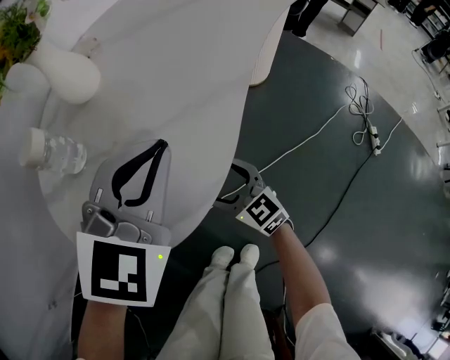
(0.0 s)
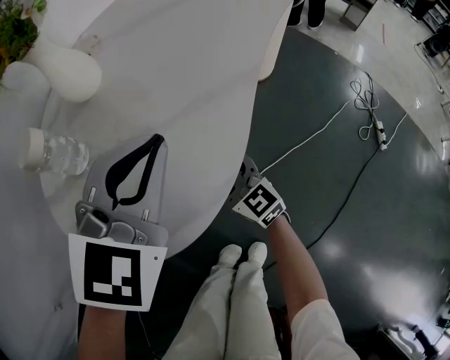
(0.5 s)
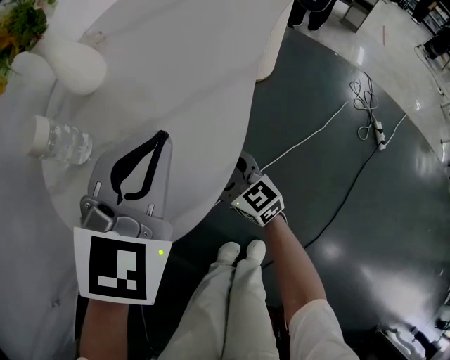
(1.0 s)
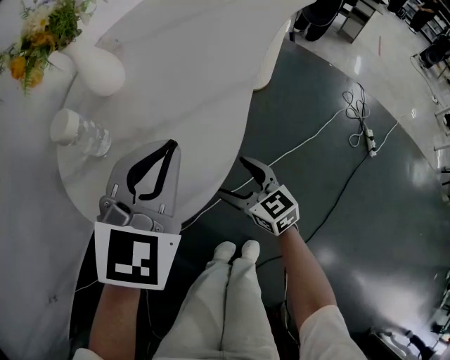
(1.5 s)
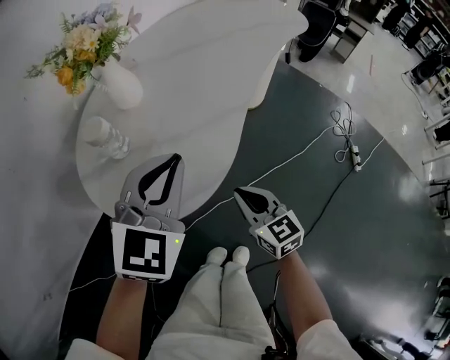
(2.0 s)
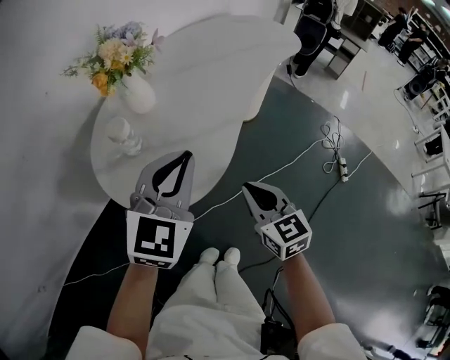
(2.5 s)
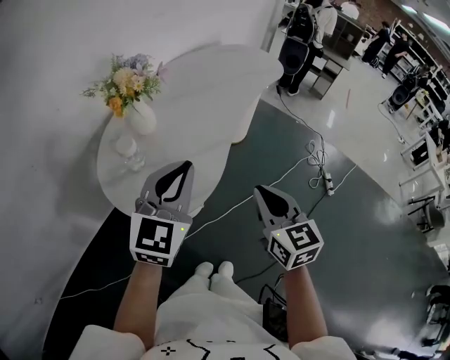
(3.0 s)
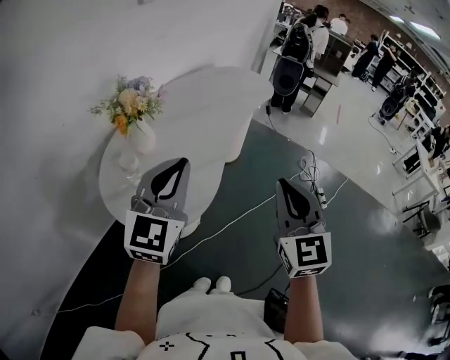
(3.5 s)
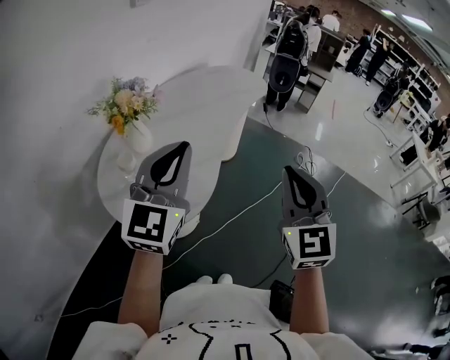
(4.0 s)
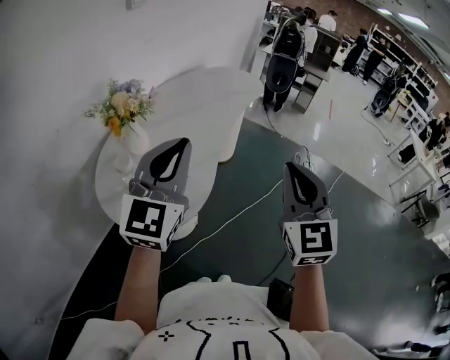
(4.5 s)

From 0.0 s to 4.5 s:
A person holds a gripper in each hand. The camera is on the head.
From 0.0 s to 2.0 s: Both grippers travel together upward and backward, approximately 15 cm. The right gripper closes.
From 2.0 s to 4.5 s: The left gripper goes roughly 25 cm upward, and turns by some 30 degrees. Meanwhile the right gripper goes roughly 40 cm upward, and turns by about 50 degrees.

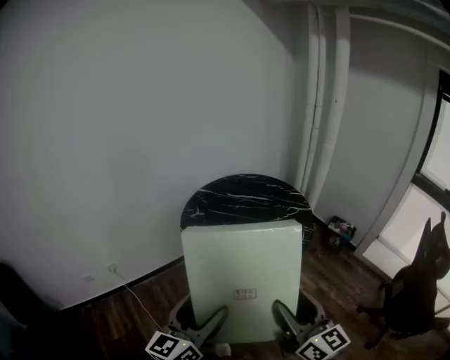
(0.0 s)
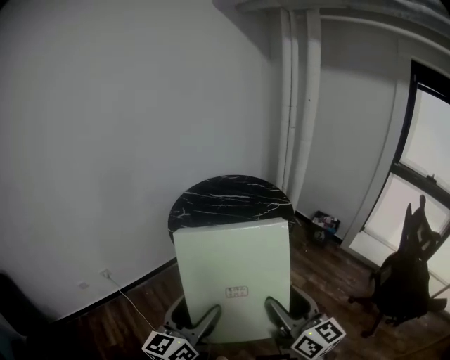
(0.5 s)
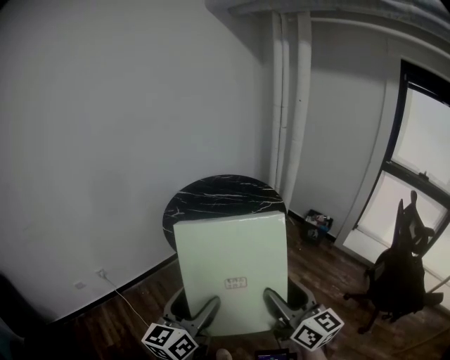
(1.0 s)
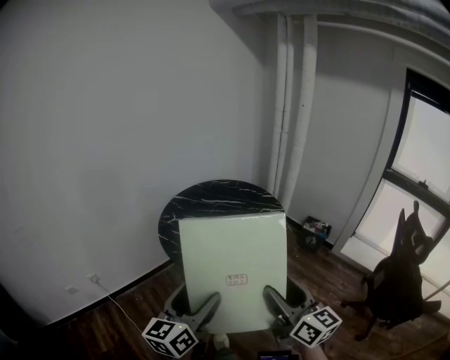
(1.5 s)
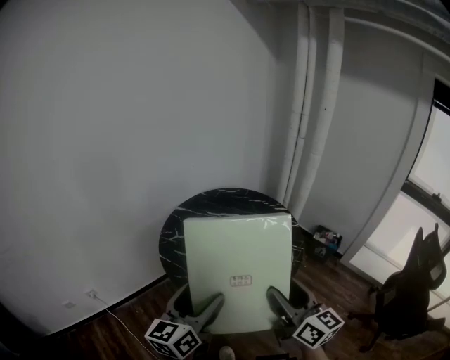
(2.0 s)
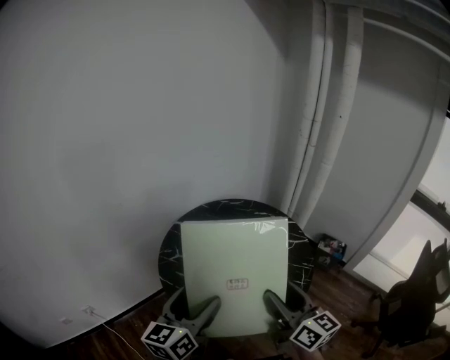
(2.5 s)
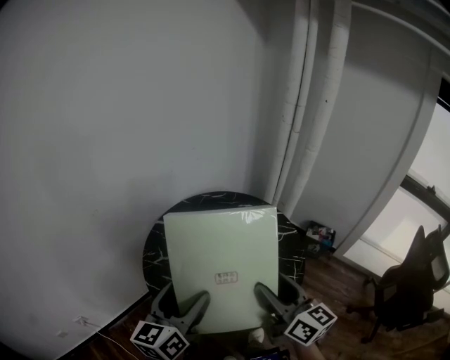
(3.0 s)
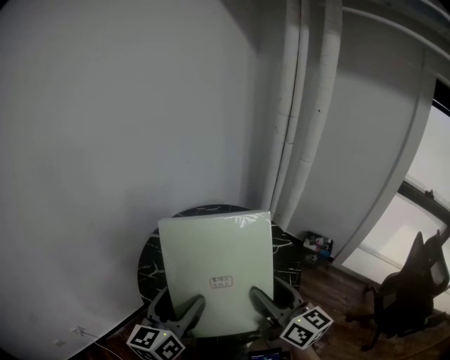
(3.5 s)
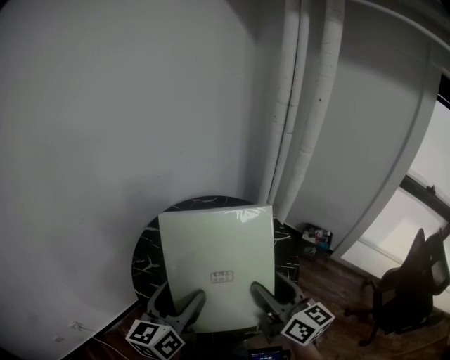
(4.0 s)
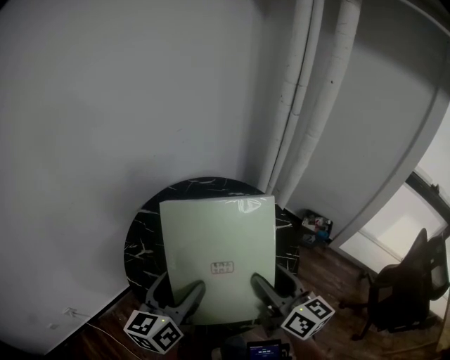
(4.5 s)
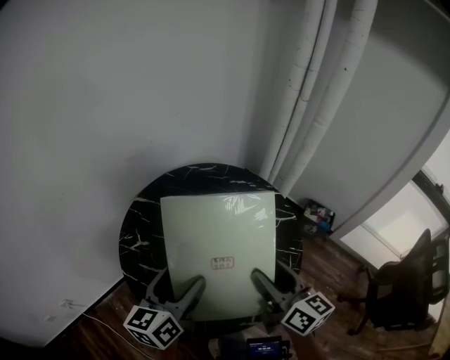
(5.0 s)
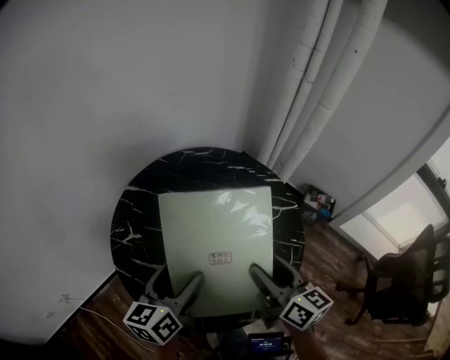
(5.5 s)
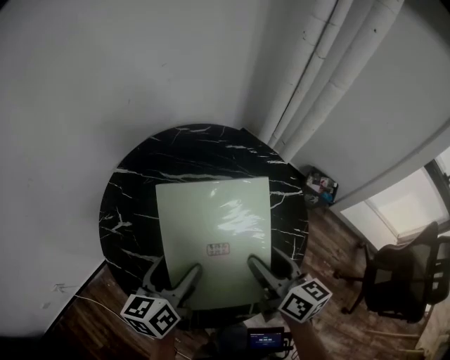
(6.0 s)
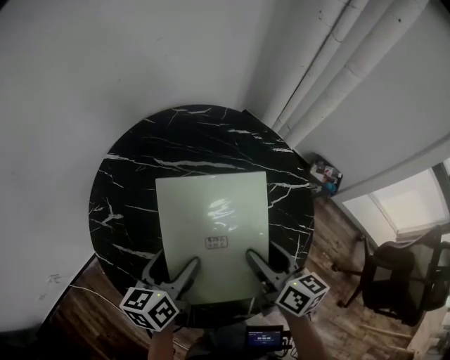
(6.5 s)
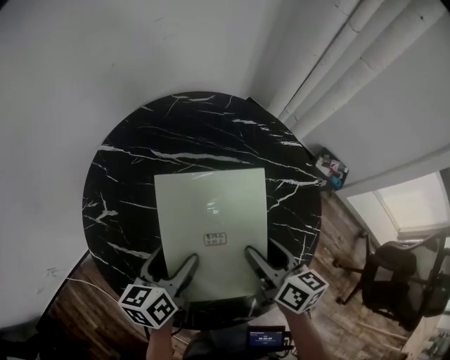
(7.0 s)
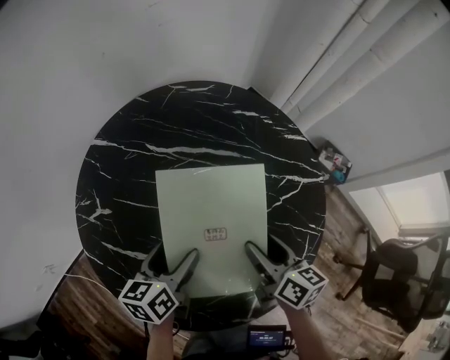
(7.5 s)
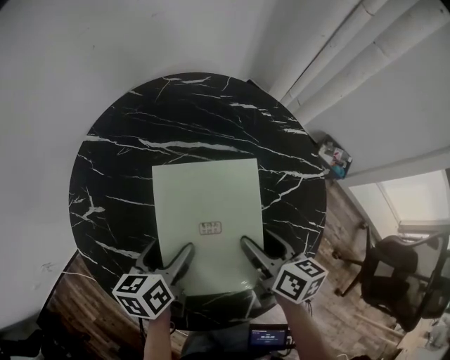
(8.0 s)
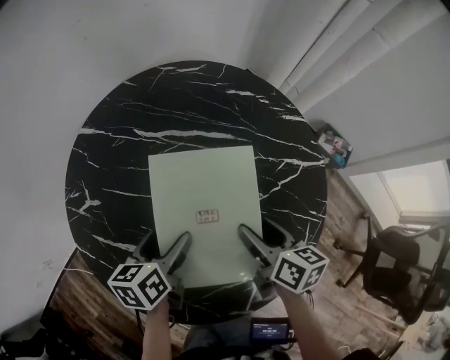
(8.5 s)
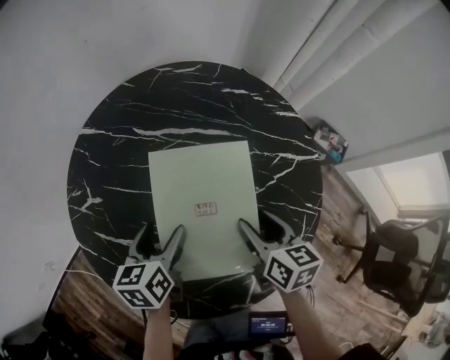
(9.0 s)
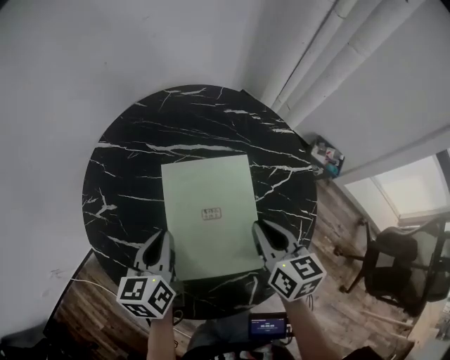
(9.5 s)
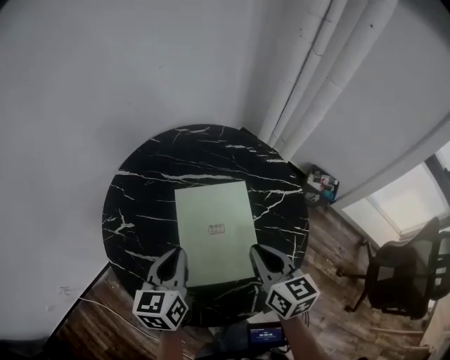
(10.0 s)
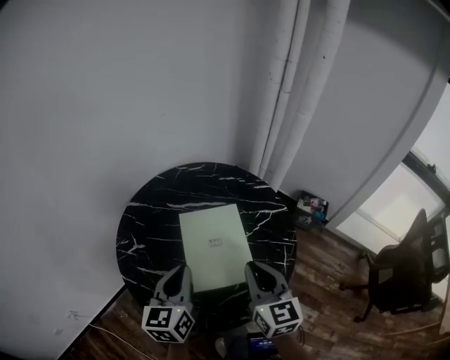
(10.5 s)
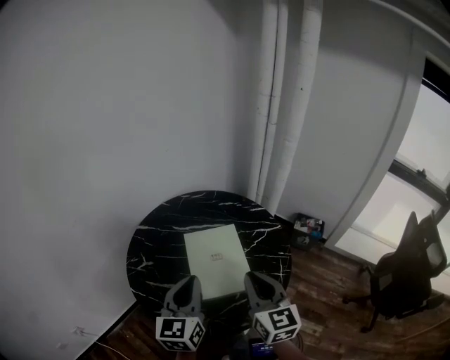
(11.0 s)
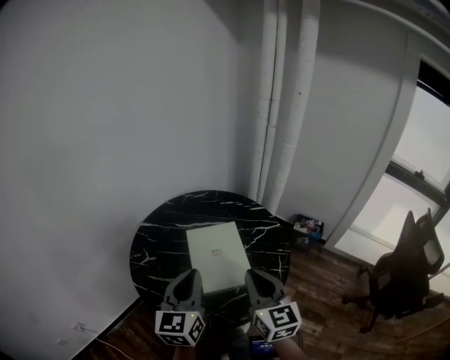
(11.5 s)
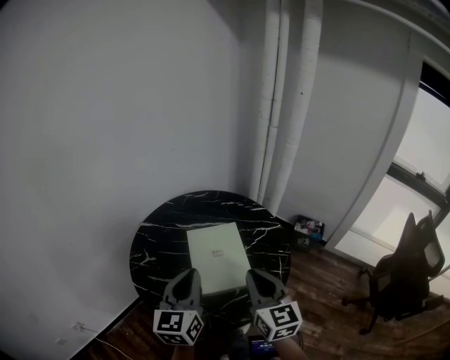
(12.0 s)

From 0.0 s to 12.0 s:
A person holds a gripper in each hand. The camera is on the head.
From 0.0 s to 2.0 s: Both grippers move forward, approximately 20 cm.
From 2.0 s to 4.0 s: Both grippers travel together forward, approximately 20 cm.
From 4.0 s to 6.0 s: Both grippers travel together downward and forward, about 20 cm. The right gripper swivels about 20 degrees. Meanwhile the left gripper rotates roughly 20 degrees.
From 6.0 s to 8.0 s: The left gripper moves downward, approximately 15 cm. The right gripper heads downward and forward, covering about 15 cm.
From 8.0 s to 10.0 s: Both grippers move upward, roughly 15 cm. The left gripper changes its angle by some 30 degrees, and closes, while the right gripper changes its angle by about 20 degrees, and closes its fingers.
From 10.0 s to 12.0 s: The two grippers go approximately 20 cm upward and backward. The left gripper rotates about 20 degrees, while the right gripper rotates some 20 degrees.

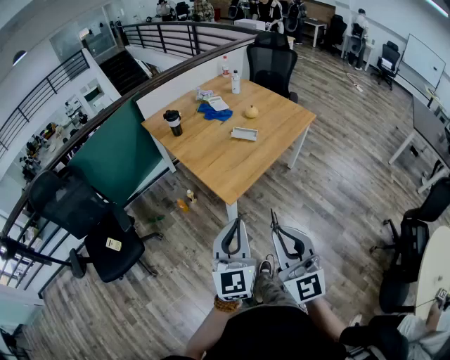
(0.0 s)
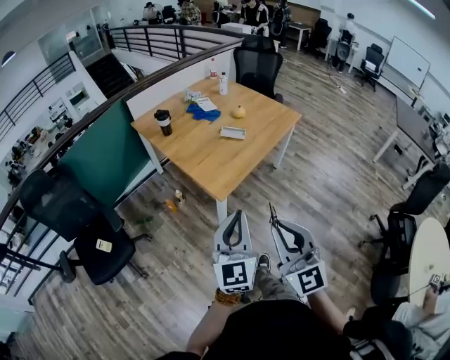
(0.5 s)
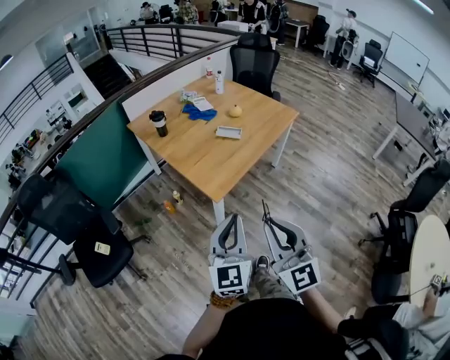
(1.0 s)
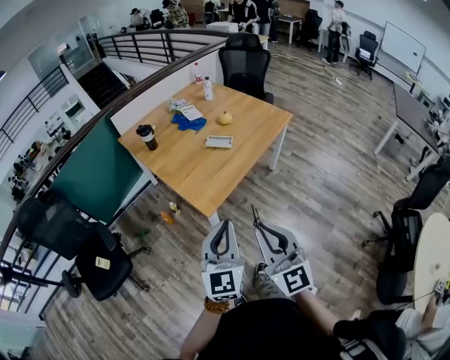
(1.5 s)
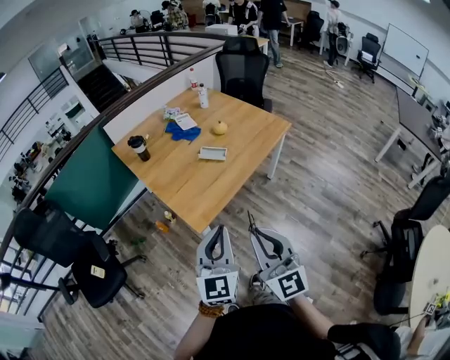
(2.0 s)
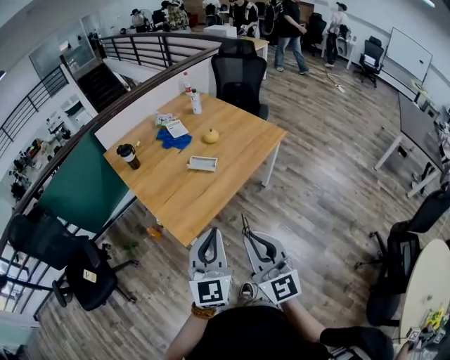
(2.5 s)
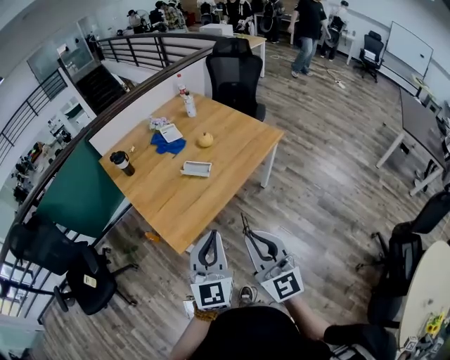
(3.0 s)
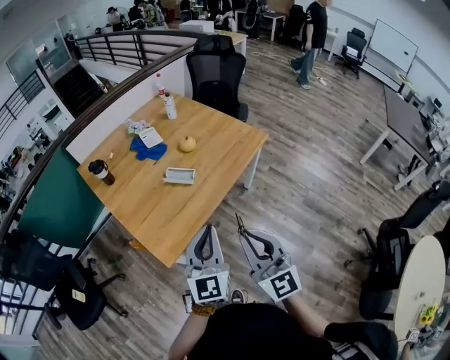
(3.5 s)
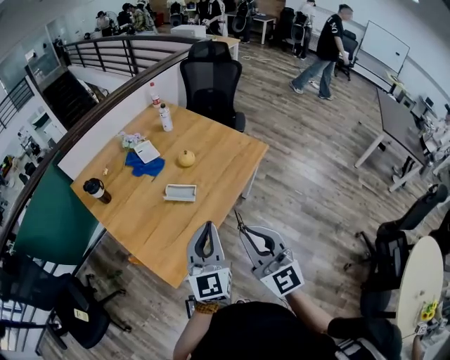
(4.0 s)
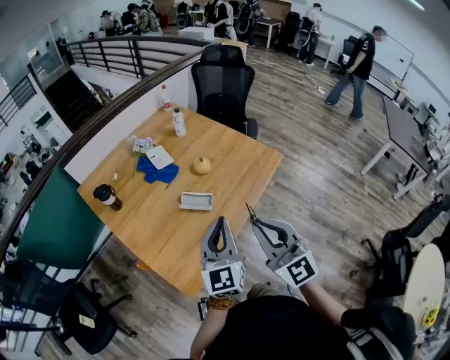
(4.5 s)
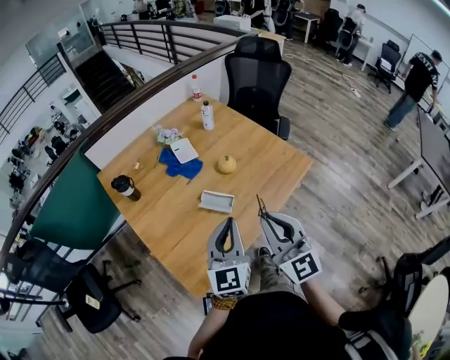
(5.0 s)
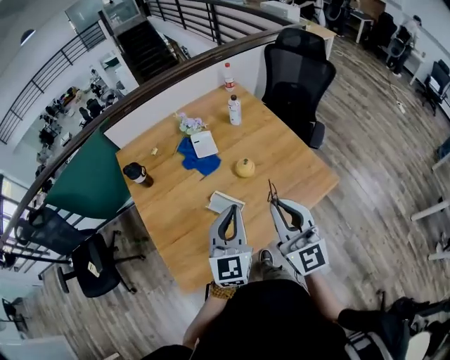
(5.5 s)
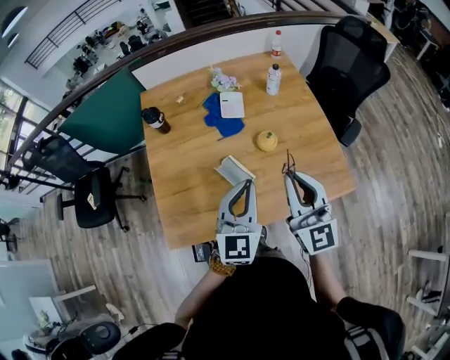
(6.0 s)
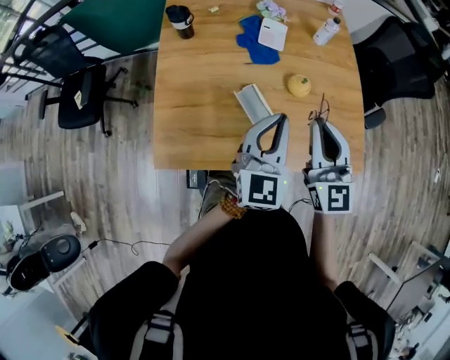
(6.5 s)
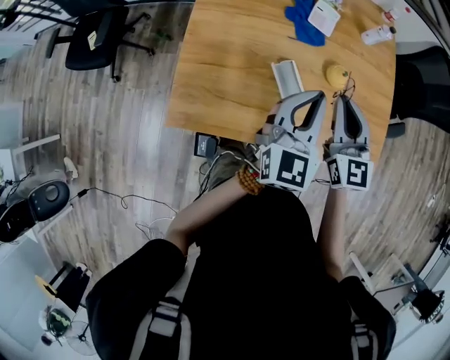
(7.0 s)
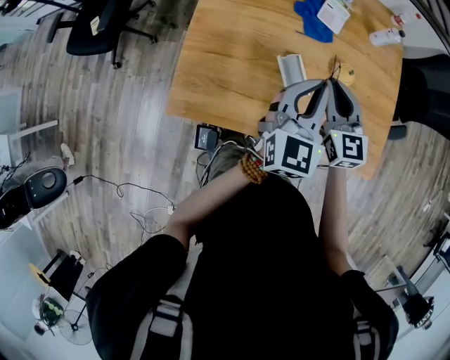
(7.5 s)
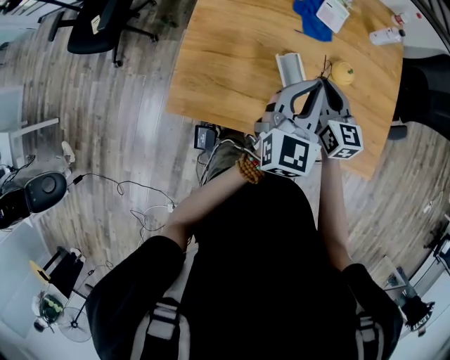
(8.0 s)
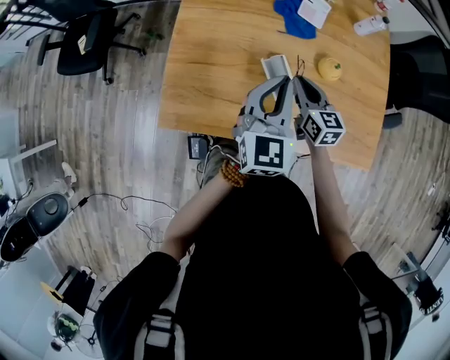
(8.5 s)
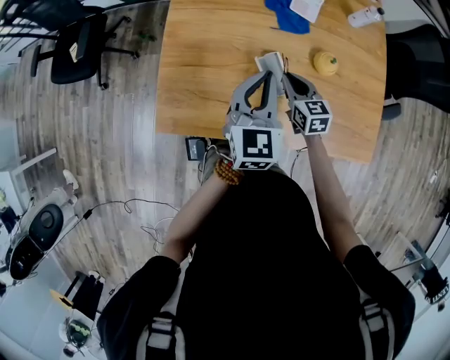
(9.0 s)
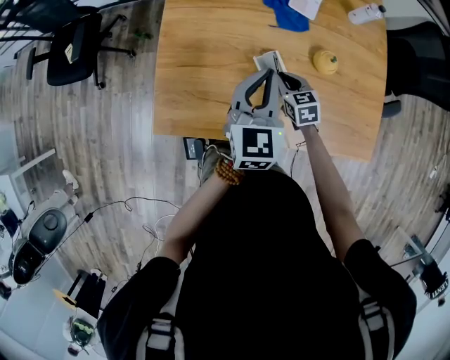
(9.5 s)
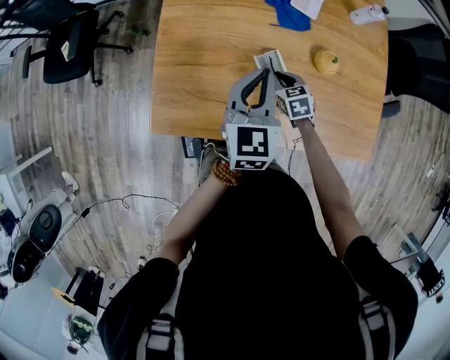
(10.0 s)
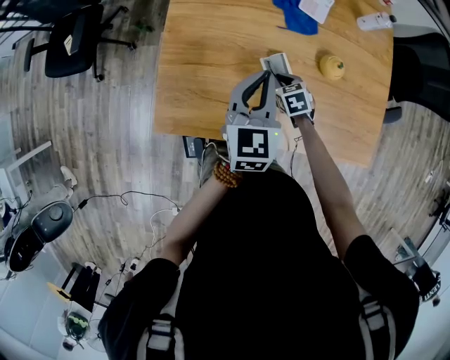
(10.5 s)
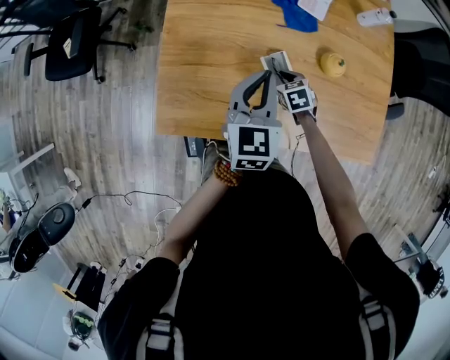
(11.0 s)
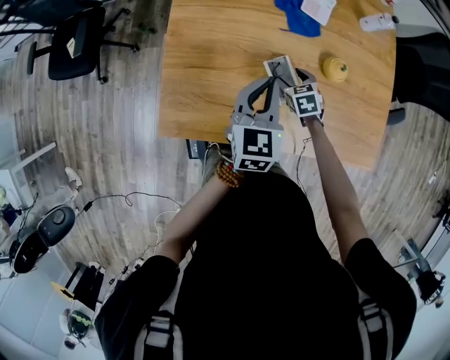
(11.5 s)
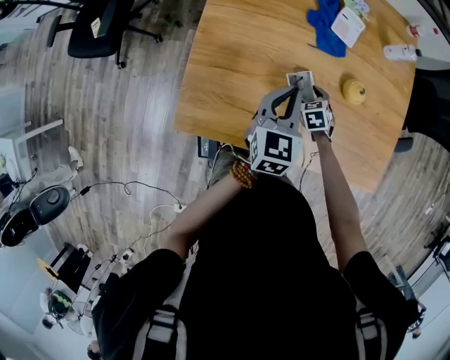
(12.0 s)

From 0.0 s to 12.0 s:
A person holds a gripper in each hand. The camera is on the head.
From 0.0 s to 2.0 s: The right gripper shifts approximately 15 cm forward and to the right. Meanwhile the left gripper travels to the right and forward by about 15 cm.
From 2.0 s to 4.0 s: Both grippers travel together forward and to the right, approximately 25 cm.
From 4.0 s to 6.0 s: The right gripper ends up approximately 35 cm from where it was, and changes its angle by some 30 degrees; the left gripper moves about 25 cm, and rotates roughly 30 degrees.
From 6.0 s to 8.0 s: The right gripper goes approximately 25 cm downward, forward and to the left, and rotates about 40 degrees. Meanwhile the left gripper travels downward, forward and to the left by about 10 cm.
From 8.0 s to 10.0 s: The right gripper shifts approximately 20 cm downward, and angles its fingers downward, by roughly 40 degrees. The left gripper shifts about 10 cm forward, to the left and downward.
From 10.0 s to 12.0 s: The right gripper is displaced downward by roughly 5 cm, and opens its fingers.
